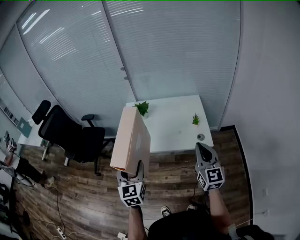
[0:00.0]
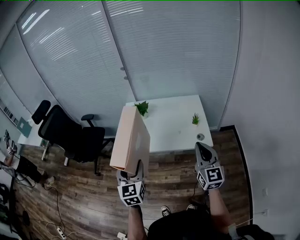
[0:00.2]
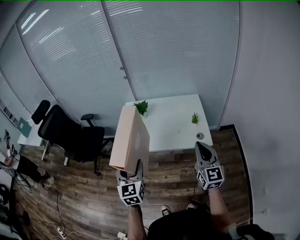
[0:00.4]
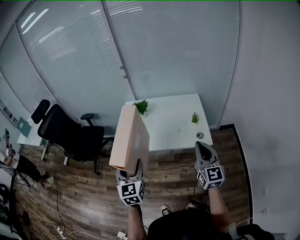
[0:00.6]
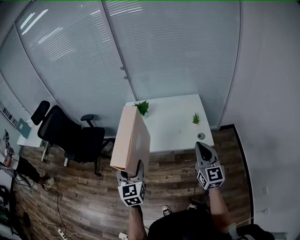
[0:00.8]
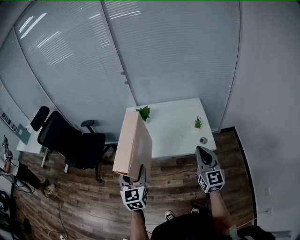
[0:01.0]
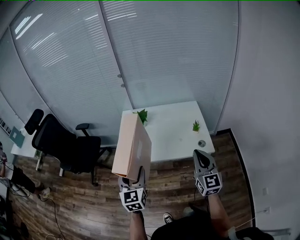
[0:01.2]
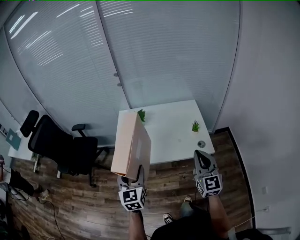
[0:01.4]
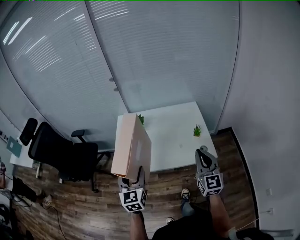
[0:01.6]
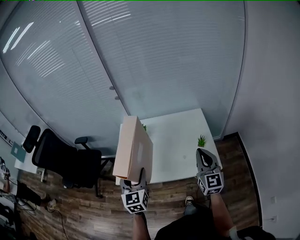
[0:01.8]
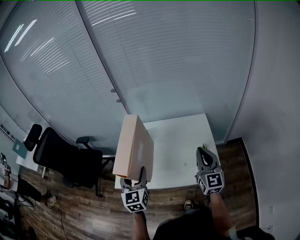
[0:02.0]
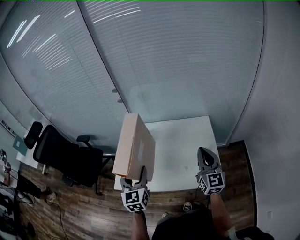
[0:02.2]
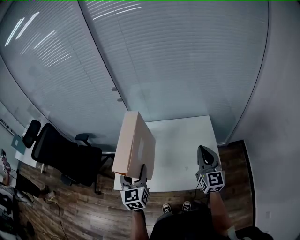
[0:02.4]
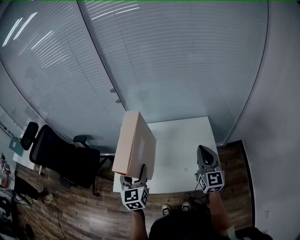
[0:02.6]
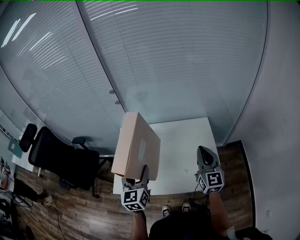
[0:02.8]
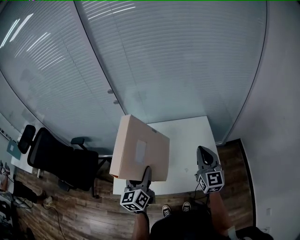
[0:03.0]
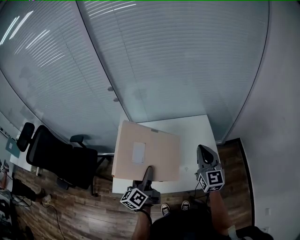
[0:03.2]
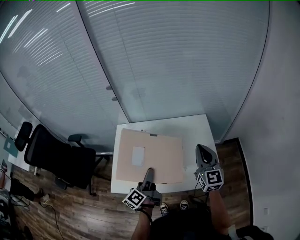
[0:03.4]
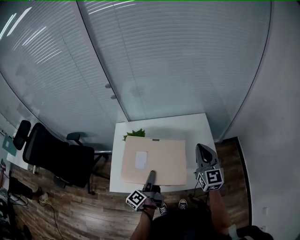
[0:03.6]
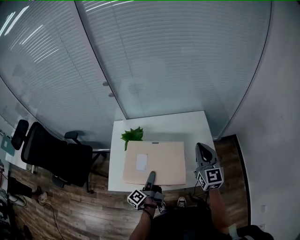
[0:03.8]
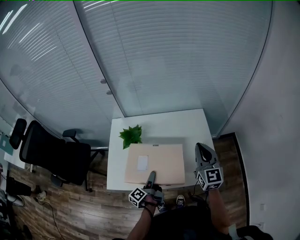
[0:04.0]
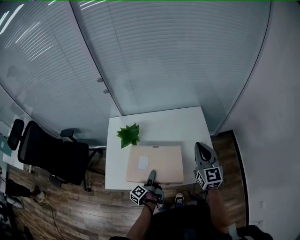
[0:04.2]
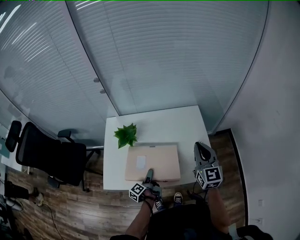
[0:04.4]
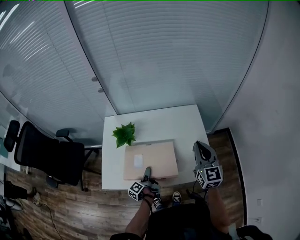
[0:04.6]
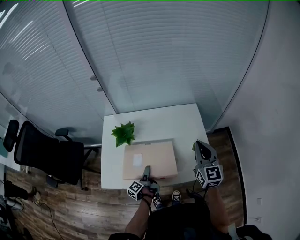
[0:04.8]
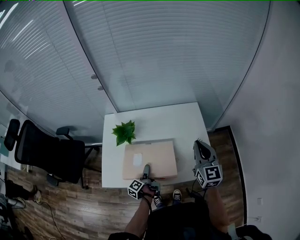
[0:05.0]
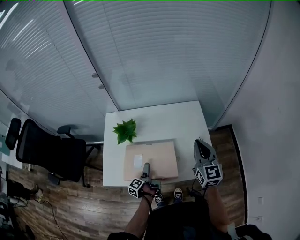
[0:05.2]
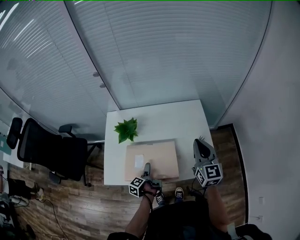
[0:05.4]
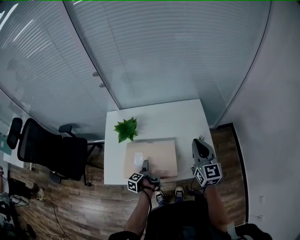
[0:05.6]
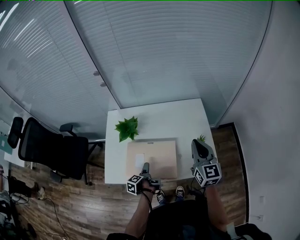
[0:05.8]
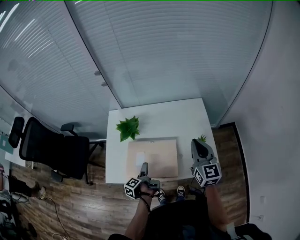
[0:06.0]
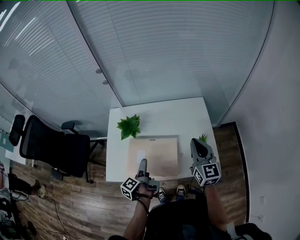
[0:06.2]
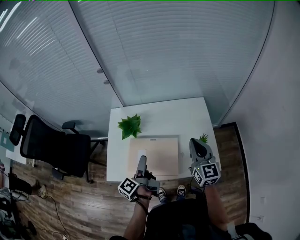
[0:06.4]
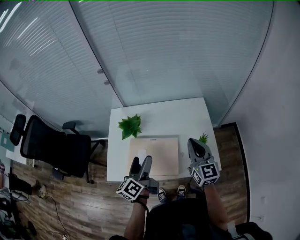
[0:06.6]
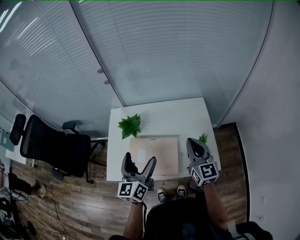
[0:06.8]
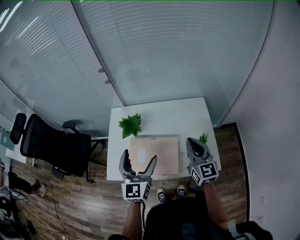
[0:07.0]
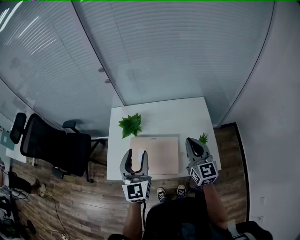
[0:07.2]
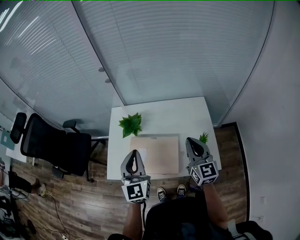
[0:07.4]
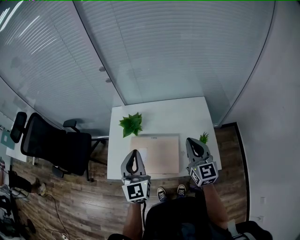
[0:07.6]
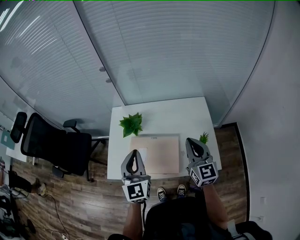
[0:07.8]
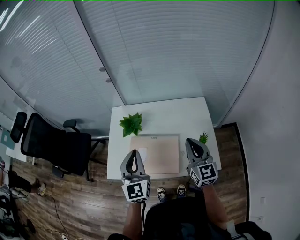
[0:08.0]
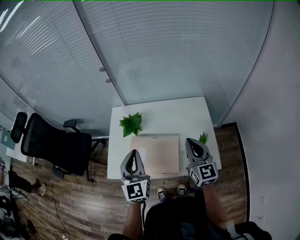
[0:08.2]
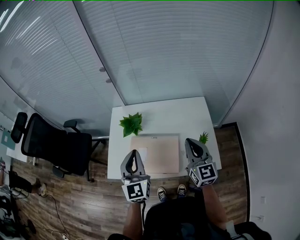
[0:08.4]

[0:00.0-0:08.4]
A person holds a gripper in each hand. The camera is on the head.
0:00.0 to 0:01.4: The right gripper shifts approximately 5 cm forward. The left gripper is displaced forward by some 10 cm.
0:01.4 to 0:02.8: The grippers both shift forward by approximately 30 cm.
0:02.8 to 0:04.2: The left gripper is displaced downward by roughly 25 cm, and rolls counterclockwise, seen from behind, by some 80 degrees.
0:04.2 to 0:05.6: The left gripper goes approximately 5 cm downward, turns by roughly 30 degrees, and opens its fingers.
0:05.6 to 0:07.0: The left gripper travels upward by some 35 cm, and twists about 90 degrees clockwise, seen from behind.
0:07.0 to 0:08.4: The left gripper closes up.

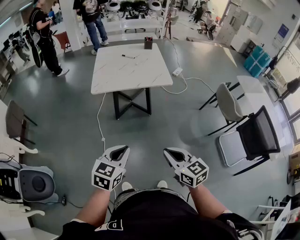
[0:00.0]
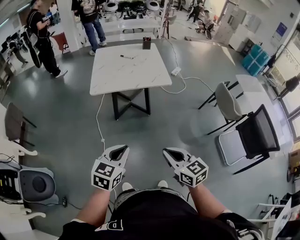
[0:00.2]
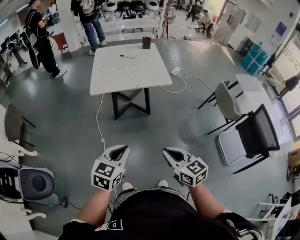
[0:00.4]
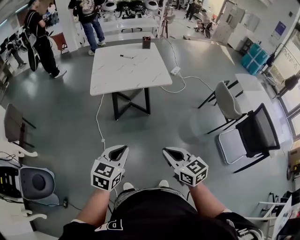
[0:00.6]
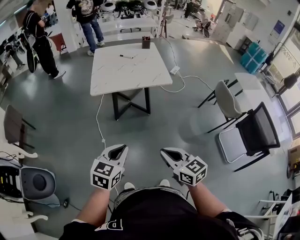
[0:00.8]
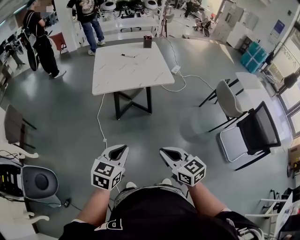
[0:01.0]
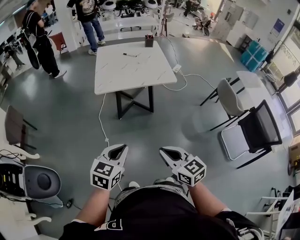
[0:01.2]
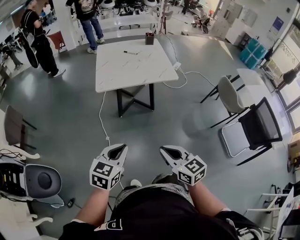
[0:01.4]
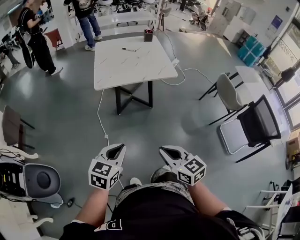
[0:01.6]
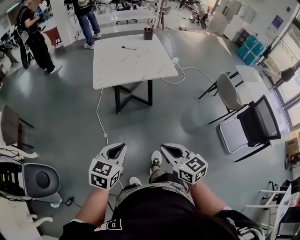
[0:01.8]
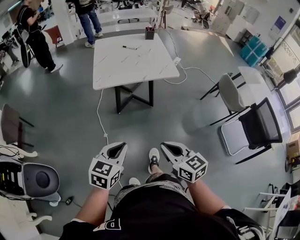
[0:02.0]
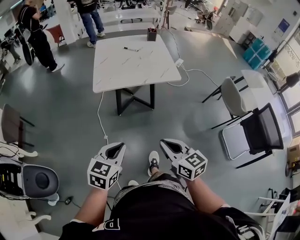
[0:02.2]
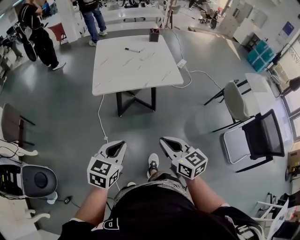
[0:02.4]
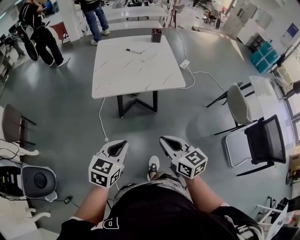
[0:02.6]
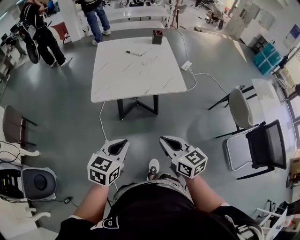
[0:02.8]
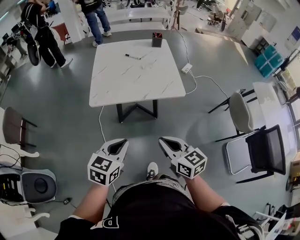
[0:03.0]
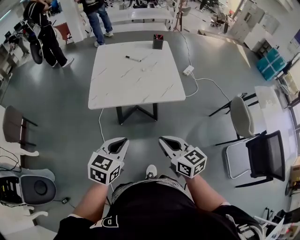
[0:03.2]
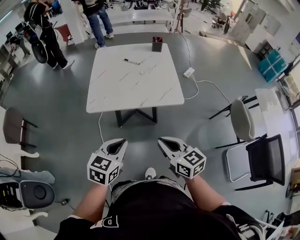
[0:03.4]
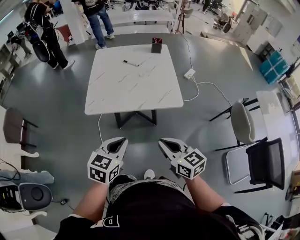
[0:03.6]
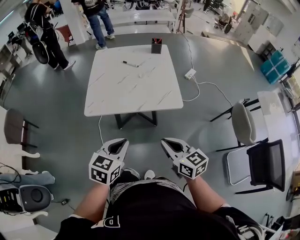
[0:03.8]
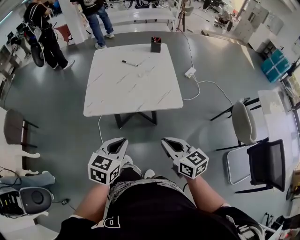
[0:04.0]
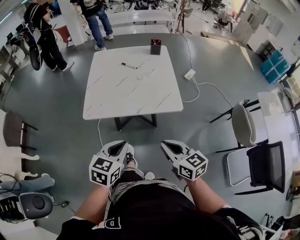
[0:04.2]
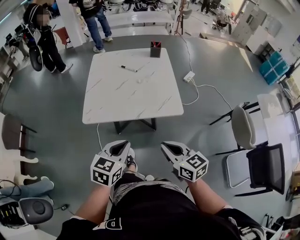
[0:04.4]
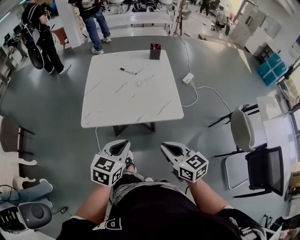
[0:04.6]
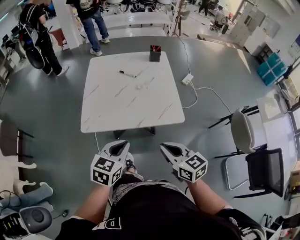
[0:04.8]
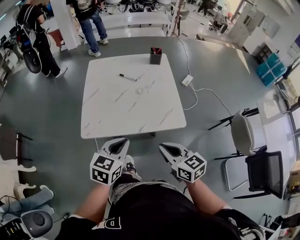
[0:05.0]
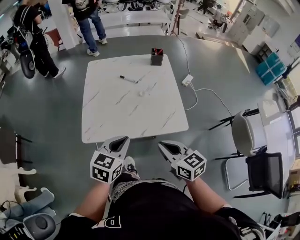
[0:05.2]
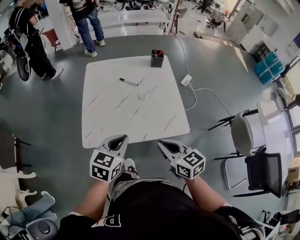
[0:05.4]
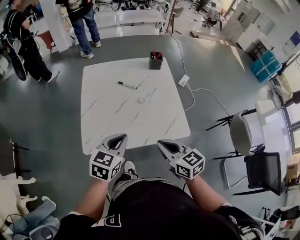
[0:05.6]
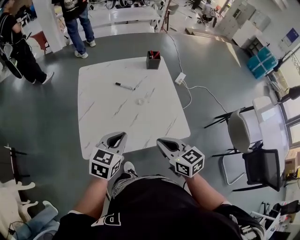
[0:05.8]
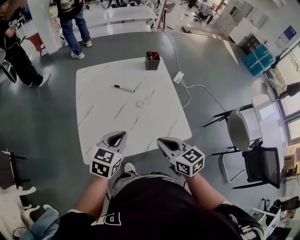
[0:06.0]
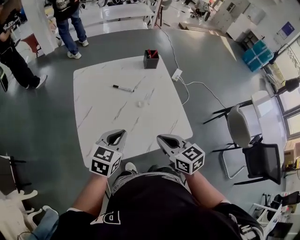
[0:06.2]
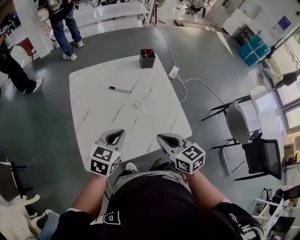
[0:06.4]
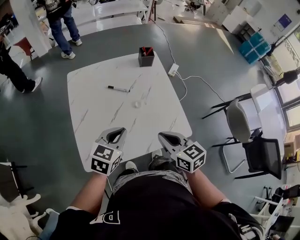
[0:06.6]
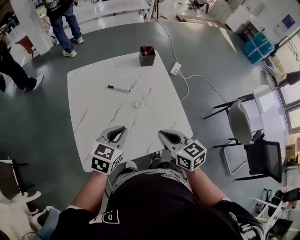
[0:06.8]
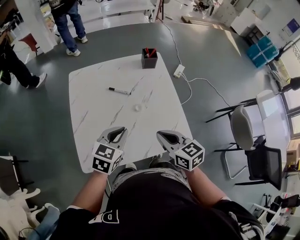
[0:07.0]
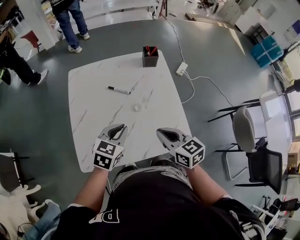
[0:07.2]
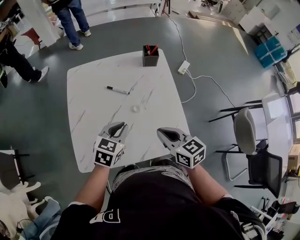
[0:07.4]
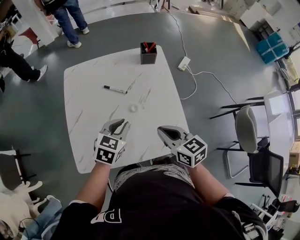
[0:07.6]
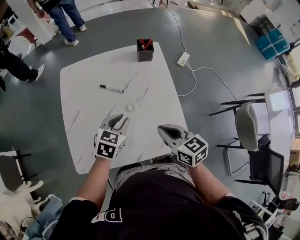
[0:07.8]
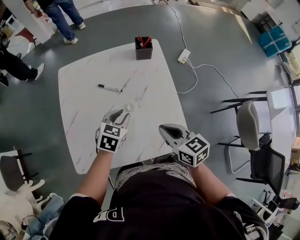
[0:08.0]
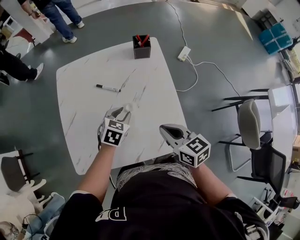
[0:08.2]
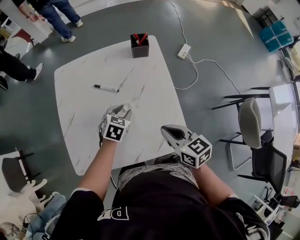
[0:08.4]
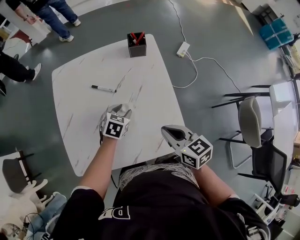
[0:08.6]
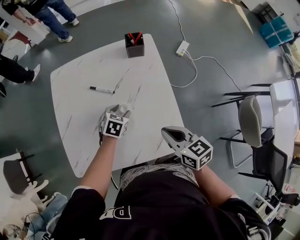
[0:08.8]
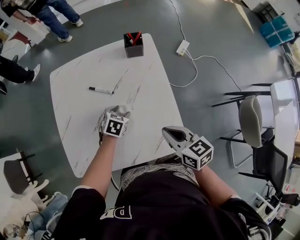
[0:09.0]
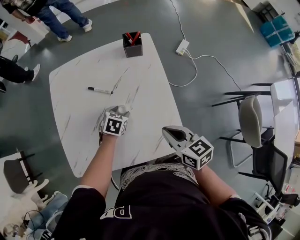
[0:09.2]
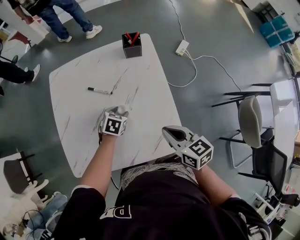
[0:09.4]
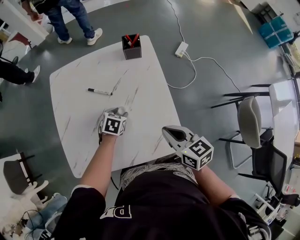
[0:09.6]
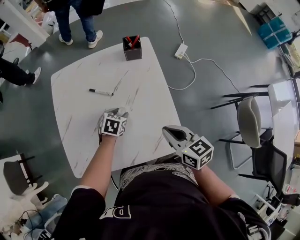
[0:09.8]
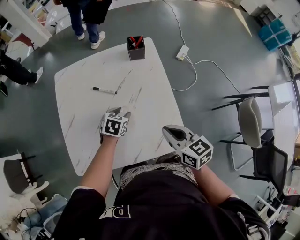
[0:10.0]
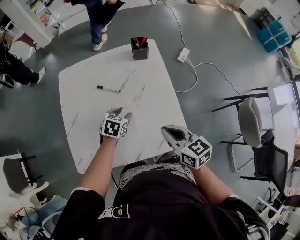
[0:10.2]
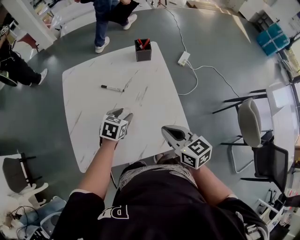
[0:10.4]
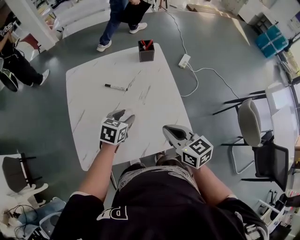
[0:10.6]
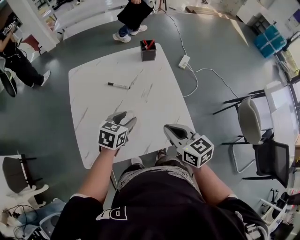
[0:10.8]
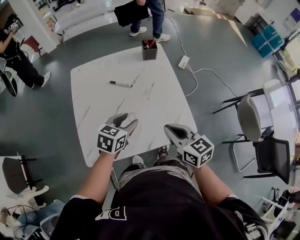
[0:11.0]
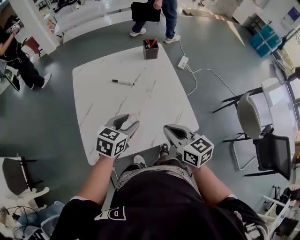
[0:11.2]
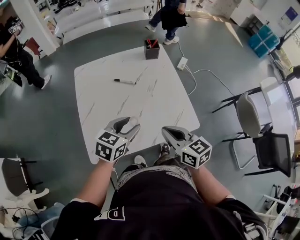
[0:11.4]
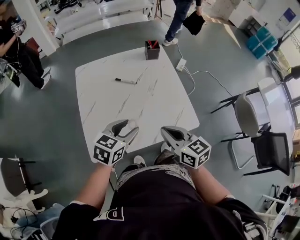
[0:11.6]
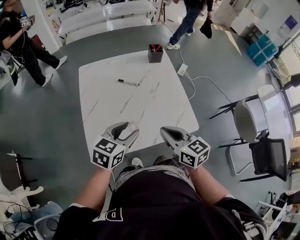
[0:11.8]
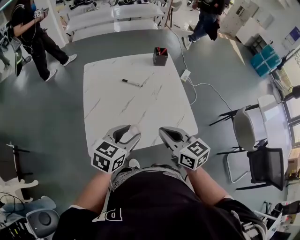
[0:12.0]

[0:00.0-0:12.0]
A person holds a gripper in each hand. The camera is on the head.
0:00.0 to 0:01.6: Both grippers move to the left, about 10 cm.
0:01.6 to 0:03.0: The left gripper moves forward and to the right, about 25 cm, while the right gripper goes roughly 25 cm forward.
0:03.0 to 0:04.4: Both grippers move forward and to the right, about 15 cm.
0:04.4 to 0:06.0: Both grippers travel together forward, about 25 cm.
0:06.0 to 0:07.6: The right gripper heads forward and to the right, covering approximately 15 cm; the left gripper shifts some 20 cm forward, to the right and downward.
0:07.6 to 0:09.0: The right gripper is displaced to the right by roughly 10 cm. The left gripper is displaced downward and forward by some 20 cm, changes its angle by some 20 degrees, and opens up.
0:09.0 to 0:10.4: The right gripper ends up approximately 10 cm from where it was, while the left gripper shifts about 10 cm upward.
0:10.4 to 0:12.0: The left gripper goes some 25 cm backward and upward, and rotates some 20 degrees. The right gripper goes about 20 cm backward, to the left and upward.

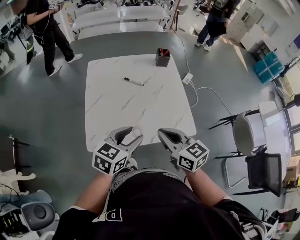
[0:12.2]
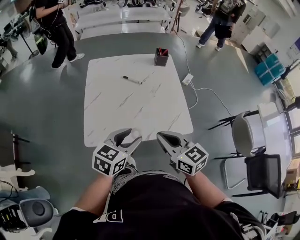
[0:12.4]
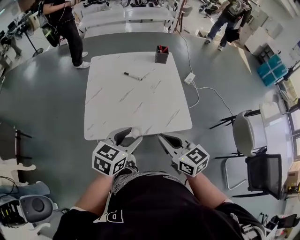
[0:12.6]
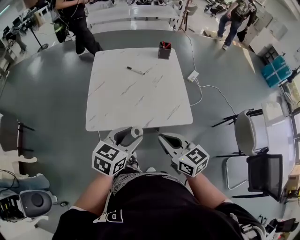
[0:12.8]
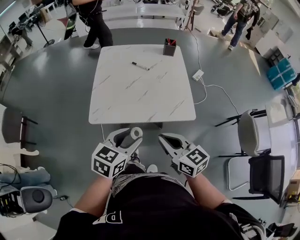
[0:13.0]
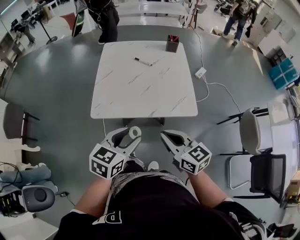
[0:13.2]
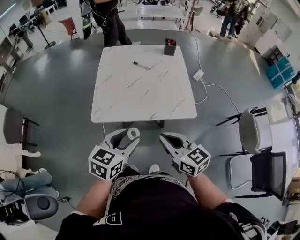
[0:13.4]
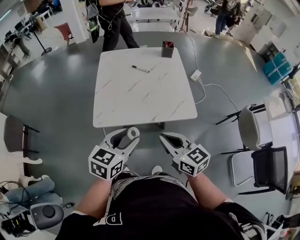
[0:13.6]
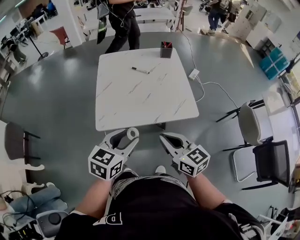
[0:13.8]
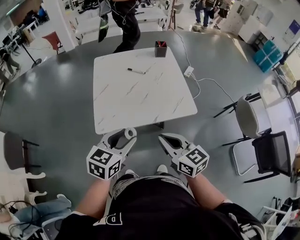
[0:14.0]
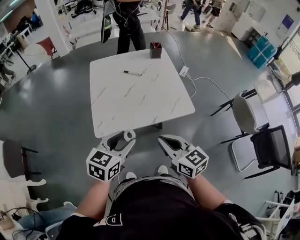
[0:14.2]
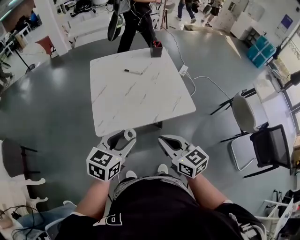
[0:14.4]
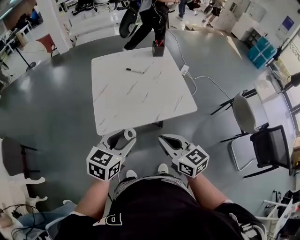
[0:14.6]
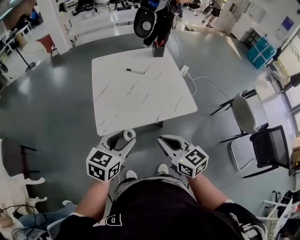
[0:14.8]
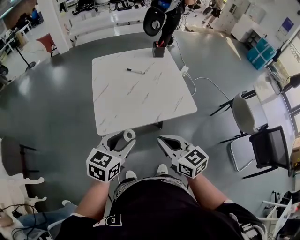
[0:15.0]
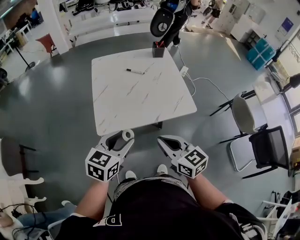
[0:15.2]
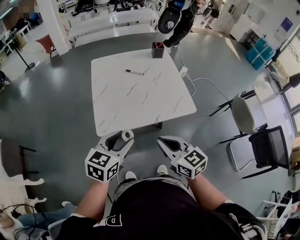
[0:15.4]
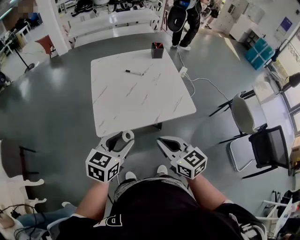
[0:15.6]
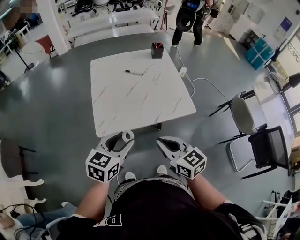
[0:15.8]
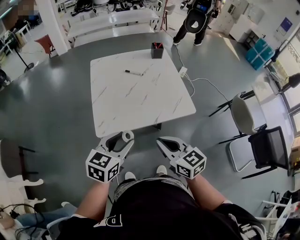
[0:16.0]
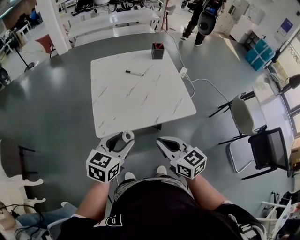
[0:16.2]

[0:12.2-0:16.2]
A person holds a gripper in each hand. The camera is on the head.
0:12.2 to 0:13.6: The grippers both shift backward by roughly 15 cm.
0:13.6 to 0:14.8: The grippers both shift to the left by approximately 5 cm.
0:14.8 to 0:16.2: The two grippers keep their place.
